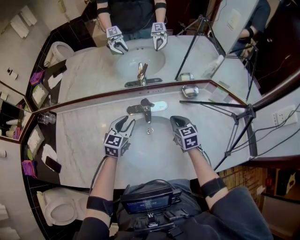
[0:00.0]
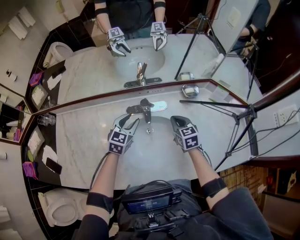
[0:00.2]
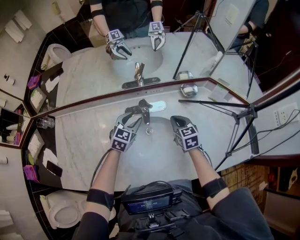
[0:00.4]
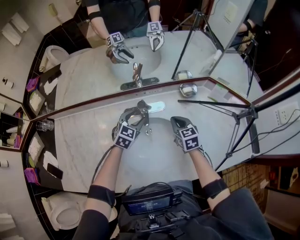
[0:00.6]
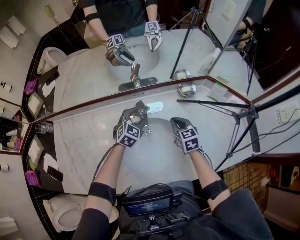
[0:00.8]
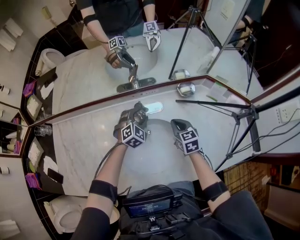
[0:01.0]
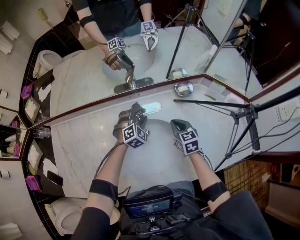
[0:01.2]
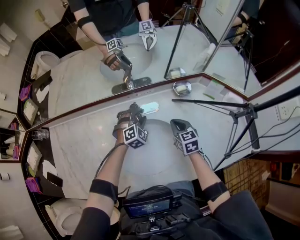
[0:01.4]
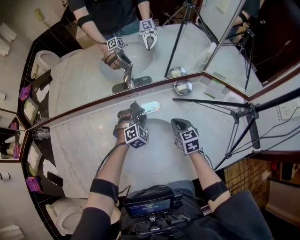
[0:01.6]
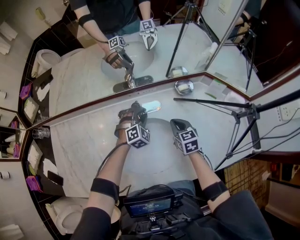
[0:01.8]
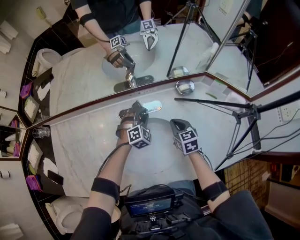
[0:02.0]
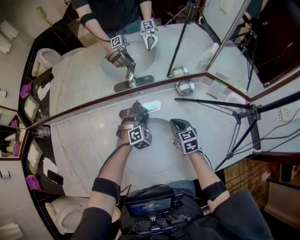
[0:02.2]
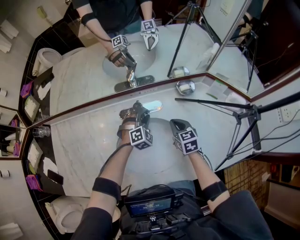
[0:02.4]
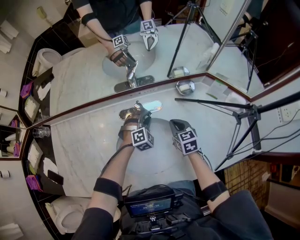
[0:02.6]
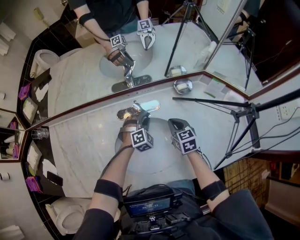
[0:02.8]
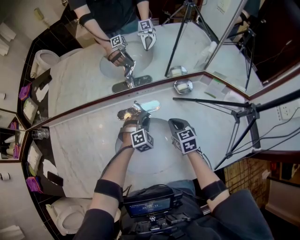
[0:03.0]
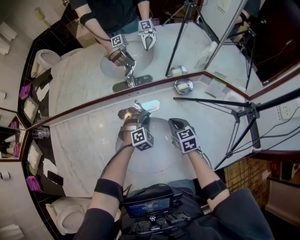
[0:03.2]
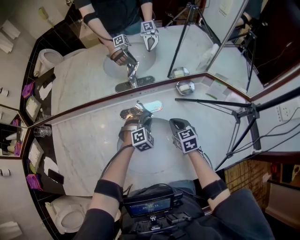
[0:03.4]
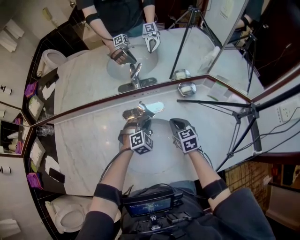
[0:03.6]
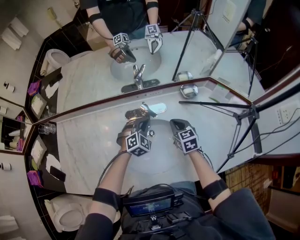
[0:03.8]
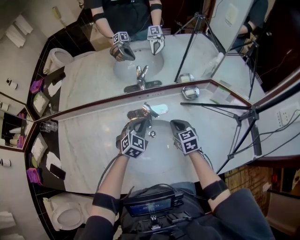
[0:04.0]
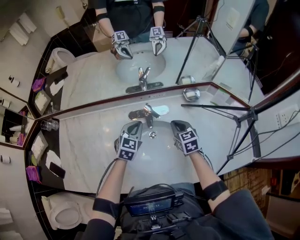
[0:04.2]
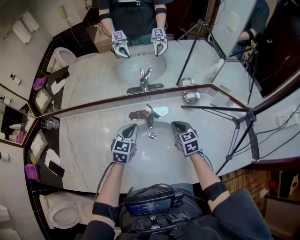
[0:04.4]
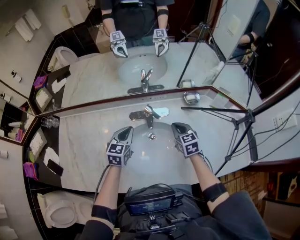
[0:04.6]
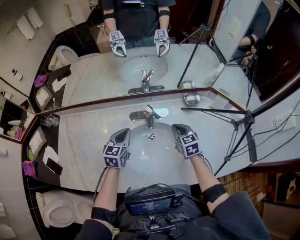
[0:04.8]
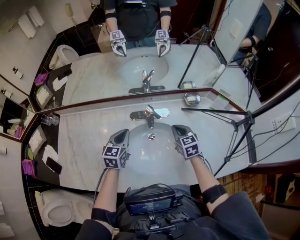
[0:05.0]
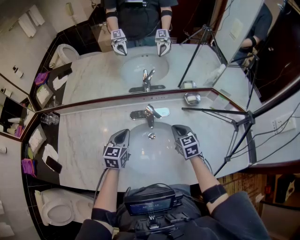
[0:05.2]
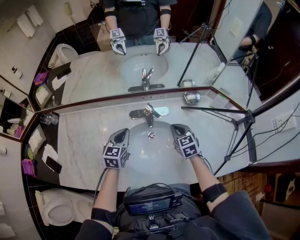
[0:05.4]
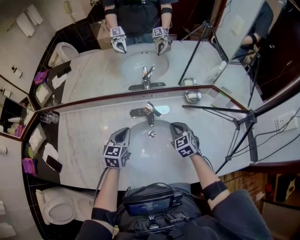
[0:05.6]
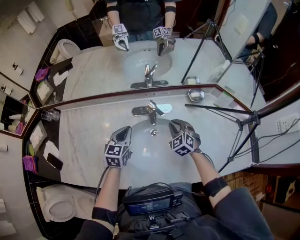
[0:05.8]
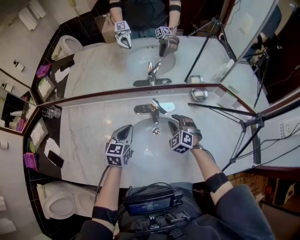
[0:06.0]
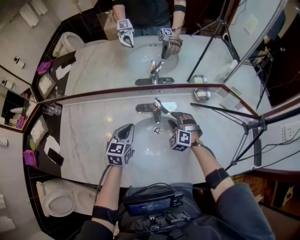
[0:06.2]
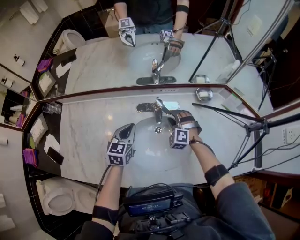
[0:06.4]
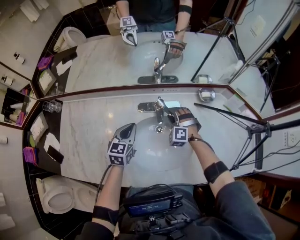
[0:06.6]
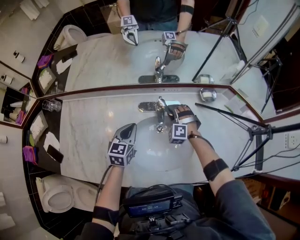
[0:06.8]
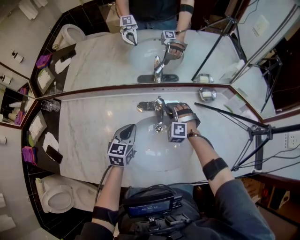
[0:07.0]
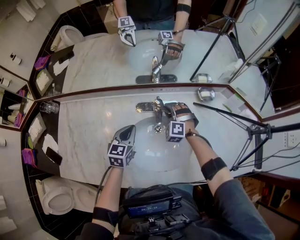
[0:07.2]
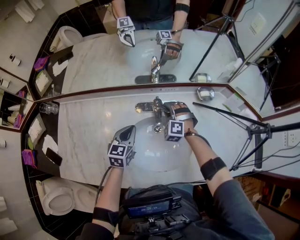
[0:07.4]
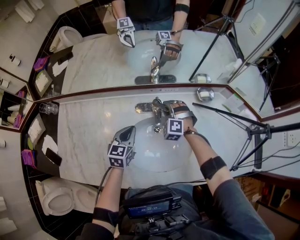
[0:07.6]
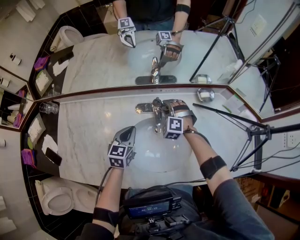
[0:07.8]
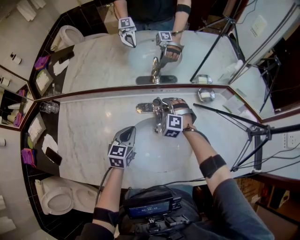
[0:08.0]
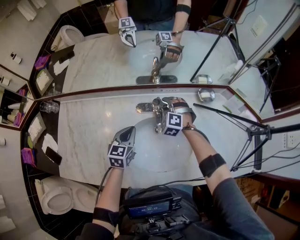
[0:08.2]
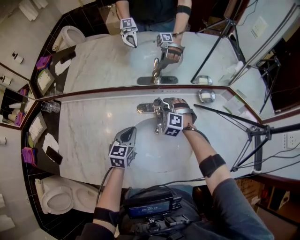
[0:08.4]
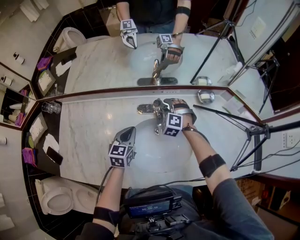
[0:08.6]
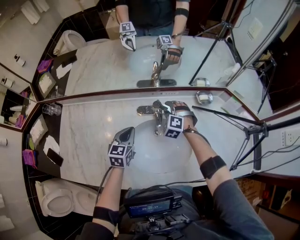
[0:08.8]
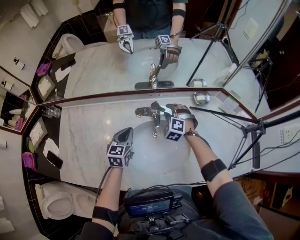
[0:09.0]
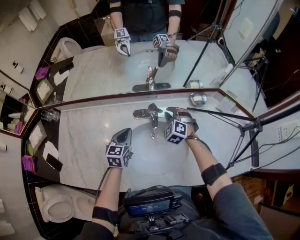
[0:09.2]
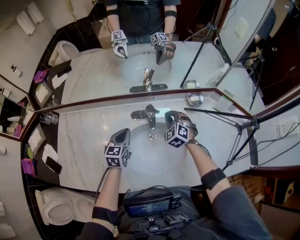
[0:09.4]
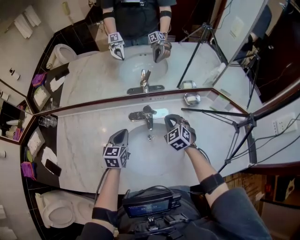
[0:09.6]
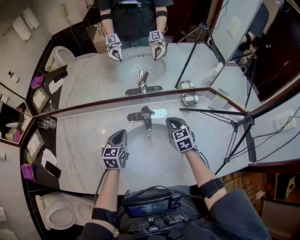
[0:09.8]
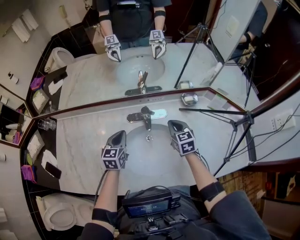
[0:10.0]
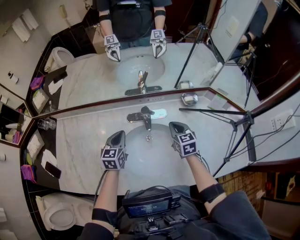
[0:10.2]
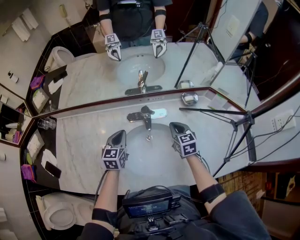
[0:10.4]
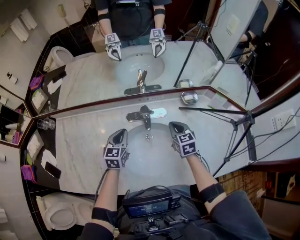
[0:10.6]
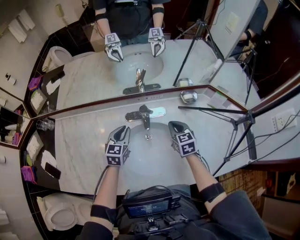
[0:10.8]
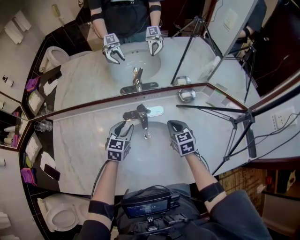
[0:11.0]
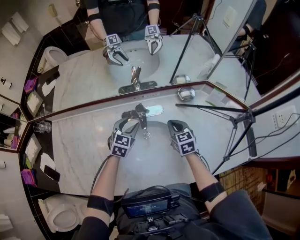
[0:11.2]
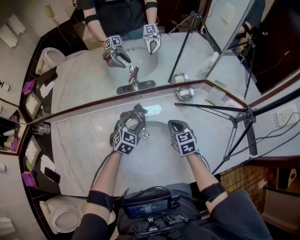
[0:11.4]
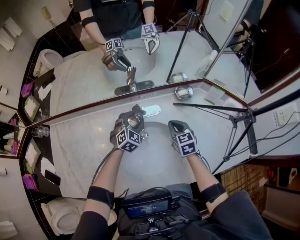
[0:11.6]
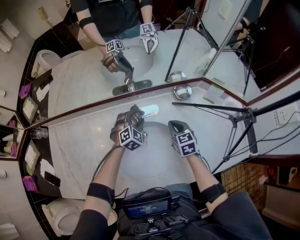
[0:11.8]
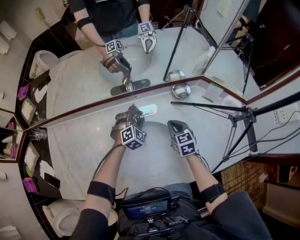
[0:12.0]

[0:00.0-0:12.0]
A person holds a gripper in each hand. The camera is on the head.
0:00.0 to 0:01.6: The left gripper shifts roughly 20 cm to the right, downward and forward, and rotates around the line of its fingers by roughly 50 degrees, clockwise from behind; the right gripper moves about 5 cm.
0:01.6 to 0:03.0: The grippers make only small movements.
0:03.0 to 0:04.4: The right gripper travels upward by some 5 cm. Meanwhile the left gripper is displaced upward, to the left and backward by approximately 20 cm, rolls counterclockwise, seen from behind, by about 50 degrees, and closes.
0:04.4 to 0:06.0: The left gripper heads to the left, covering roughly 5 cm. Meanwhile the right gripper moves some 5 cm, rolls counterclockwise, seen from behind, by some 50 degrees, and opens its fingers.
0:06.0 to 0:07.6: The right gripper heads forward and to the left, covering some 10 cm, and turns by approximately 20 degrees.
0:07.6 to 0:09.0: The grippers move only a little.
0:09.0 to 0:10.4: The right gripper heads to the right and backward, covering roughly 10 cm, twists some 60 degrees clockwise, seen from behind, and closes up.
0:10.4 to 0:12.0: The left gripper shifts approximately 20 cm to the right, forward and downward, twists roughly 60 degrees clockwise, seen from behind, and opens. The right gripper shifts by approximately 5 cm.

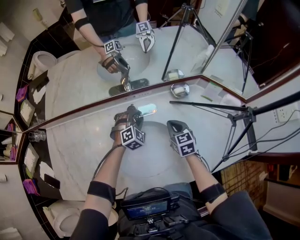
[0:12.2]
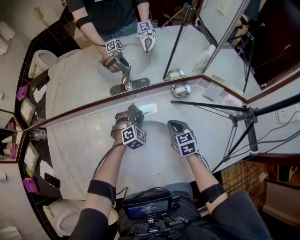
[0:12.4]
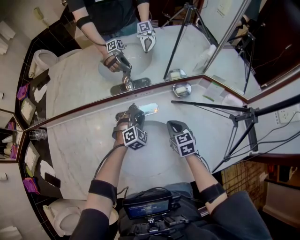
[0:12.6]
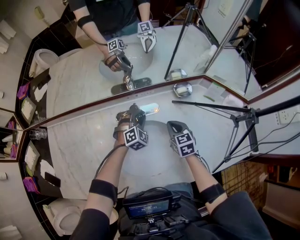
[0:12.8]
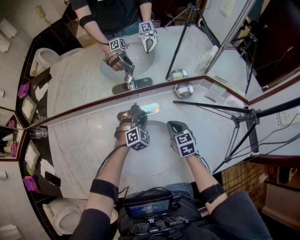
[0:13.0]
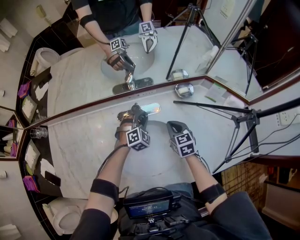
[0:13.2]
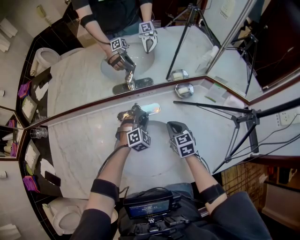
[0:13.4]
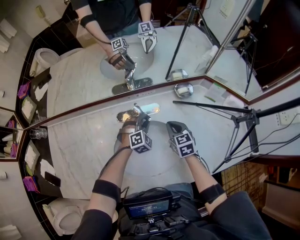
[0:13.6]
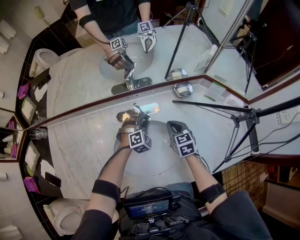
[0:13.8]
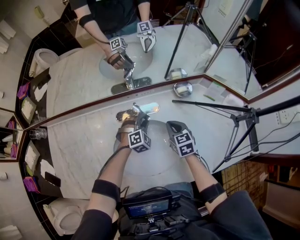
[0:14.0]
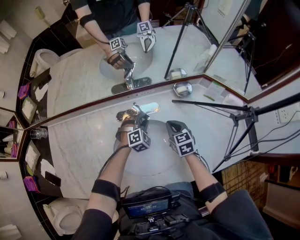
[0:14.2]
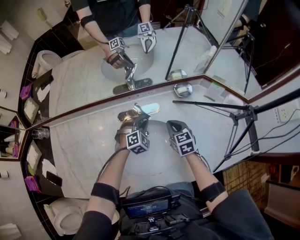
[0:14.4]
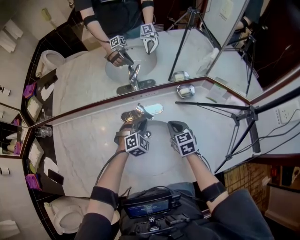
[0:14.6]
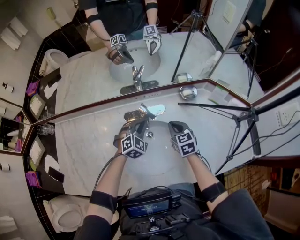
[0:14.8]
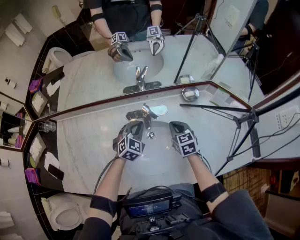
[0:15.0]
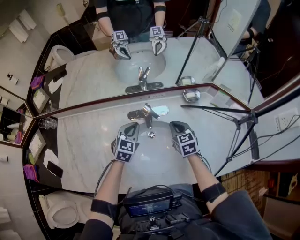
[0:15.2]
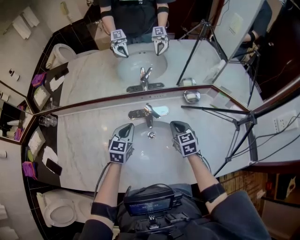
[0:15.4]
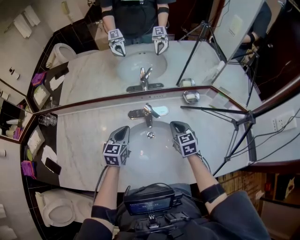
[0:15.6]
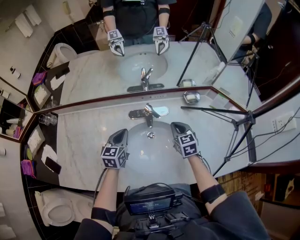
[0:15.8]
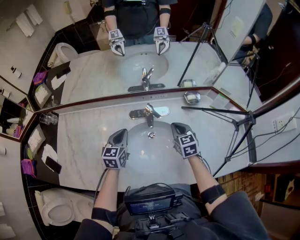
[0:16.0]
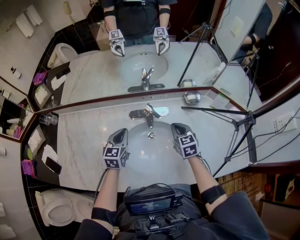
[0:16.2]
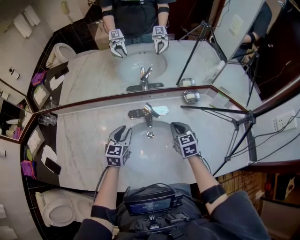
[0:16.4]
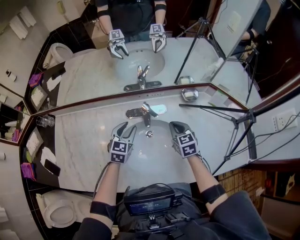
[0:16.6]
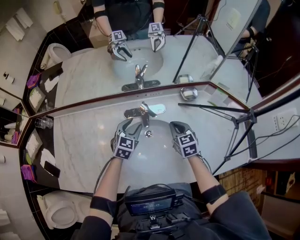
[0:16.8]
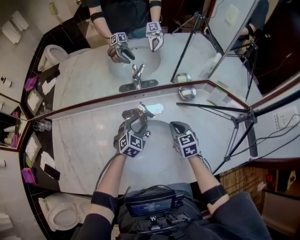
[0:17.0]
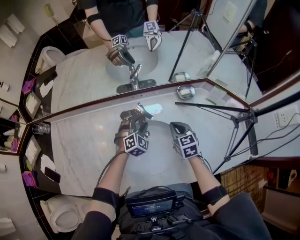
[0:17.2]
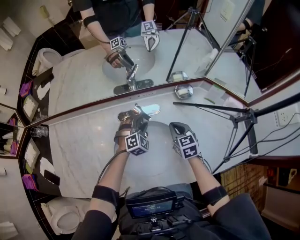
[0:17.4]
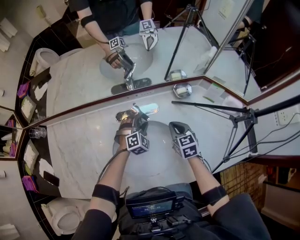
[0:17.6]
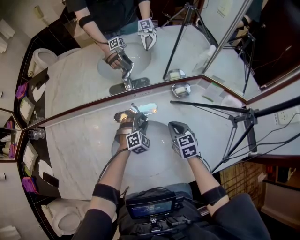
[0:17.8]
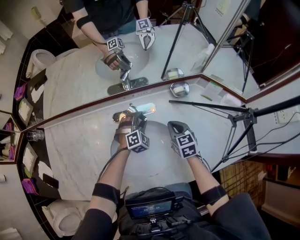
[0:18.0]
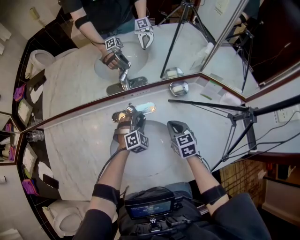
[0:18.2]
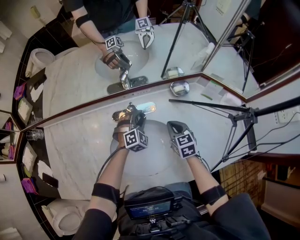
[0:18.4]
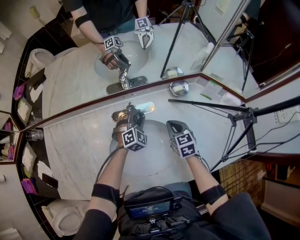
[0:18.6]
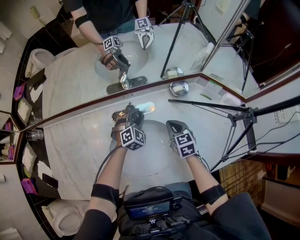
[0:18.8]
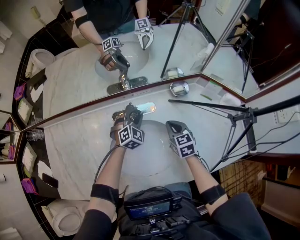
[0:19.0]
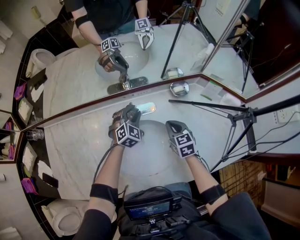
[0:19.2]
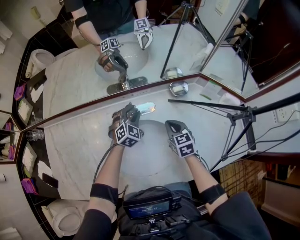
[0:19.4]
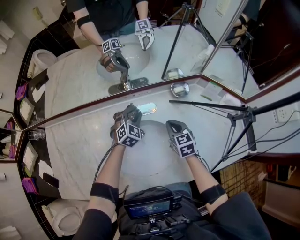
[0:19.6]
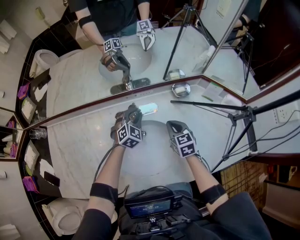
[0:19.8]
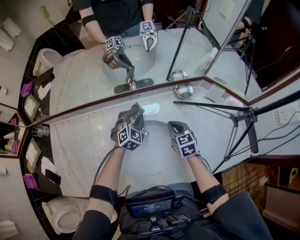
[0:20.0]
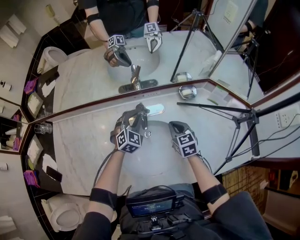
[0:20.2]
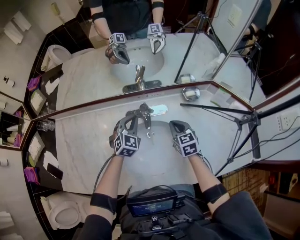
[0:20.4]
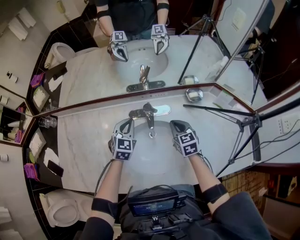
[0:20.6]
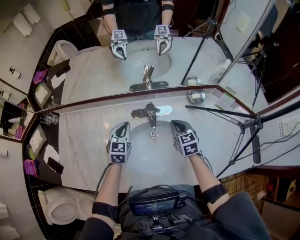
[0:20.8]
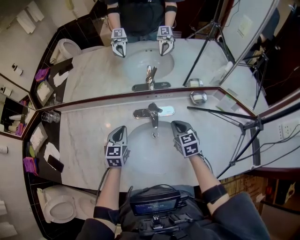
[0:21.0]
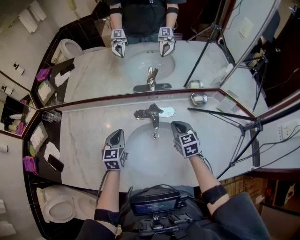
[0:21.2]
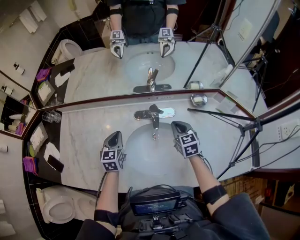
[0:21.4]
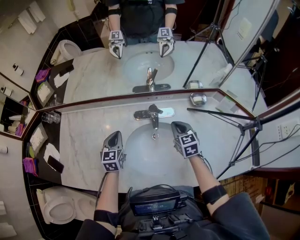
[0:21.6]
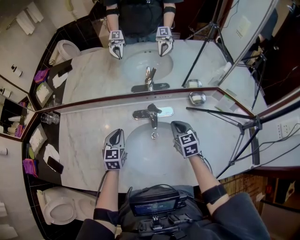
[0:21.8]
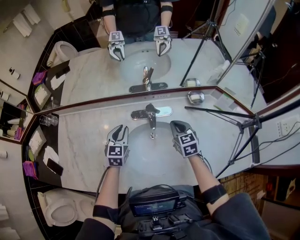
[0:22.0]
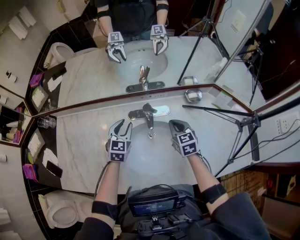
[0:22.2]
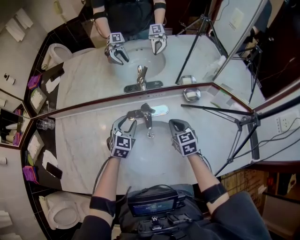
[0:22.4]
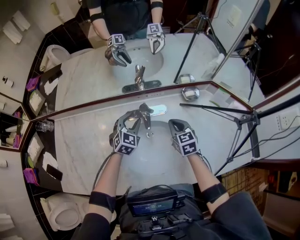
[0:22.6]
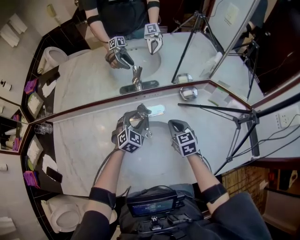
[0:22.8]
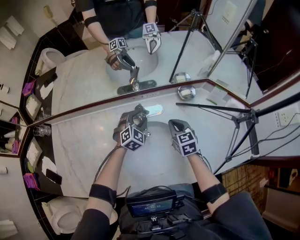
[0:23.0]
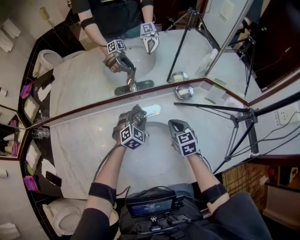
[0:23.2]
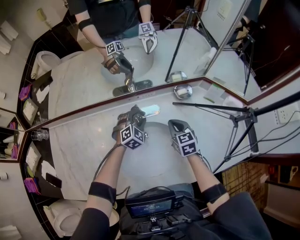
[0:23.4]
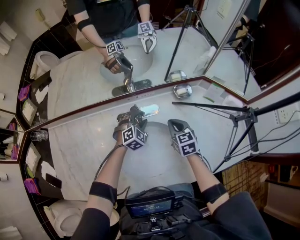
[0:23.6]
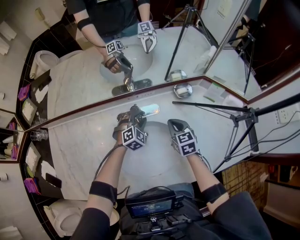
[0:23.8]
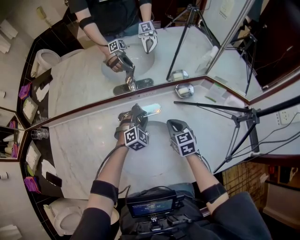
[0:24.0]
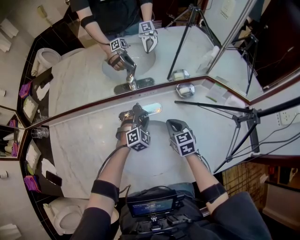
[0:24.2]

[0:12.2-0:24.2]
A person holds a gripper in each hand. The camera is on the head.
0:12.2 to 0:13.8: The grippers stay close to where they were, moving slightly.
0:13.8 to 0:15.2: The left gripper moves upward, to the left and backward, roughly 15 cm, twists about 40 degrees counterclockwise, seen from behind, and closes.
0:15.2 to 0:16.6: The left gripper opens up.
0:16.6 to 0:18.2: The right gripper ends up some 5 cm from where it was, while the left gripper goes about 15 cm to the right, downward and forward, and rolls clockwise, seen from behind, by roughly 50 degrees.
0:18.2 to 0:19.8: The grippers make only small movements.
0:19.8 to 0:21.2: The left gripper travels to the left and backward by some 25 cm, rolls counterclockwise, seen from behind, by approximately 50 degrees, and closes up. Meanwhile the right gripper heads to the left, covering about 5 cm.
0:21.2 to 0:22.6: The left gripper shifts roughly 15 cm to the right and forward, turns by approximately 40 degrees, and opens up.
0:22.6 to 0:24.2: The left gripper goes roughly 10 cm to the right and downward, and changes its angle by some 30 degrees.
